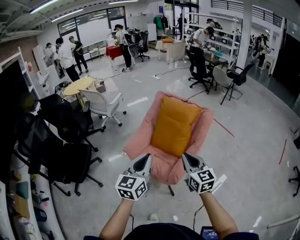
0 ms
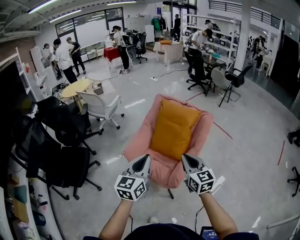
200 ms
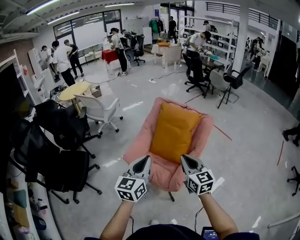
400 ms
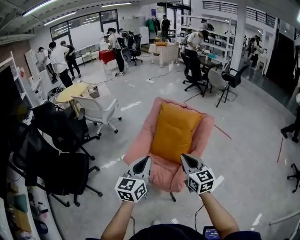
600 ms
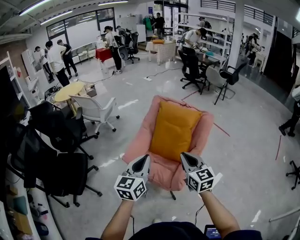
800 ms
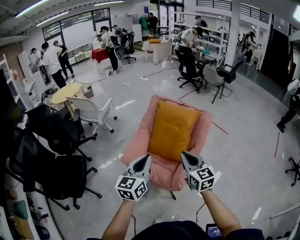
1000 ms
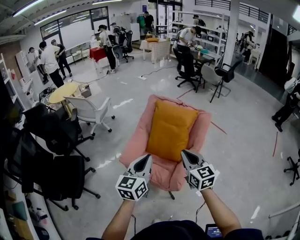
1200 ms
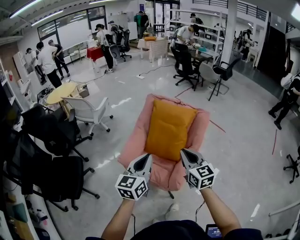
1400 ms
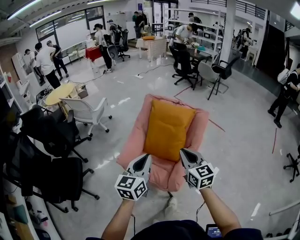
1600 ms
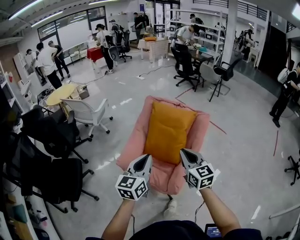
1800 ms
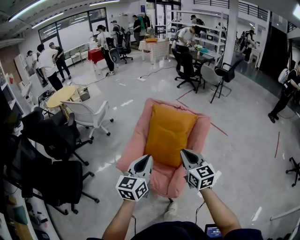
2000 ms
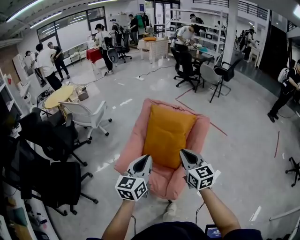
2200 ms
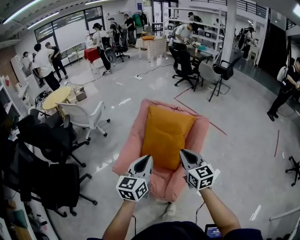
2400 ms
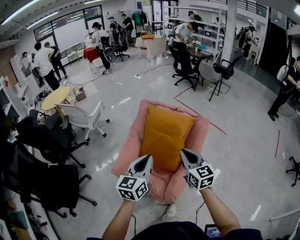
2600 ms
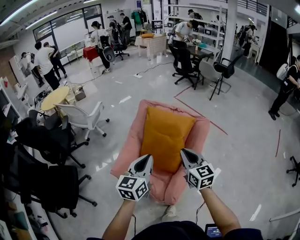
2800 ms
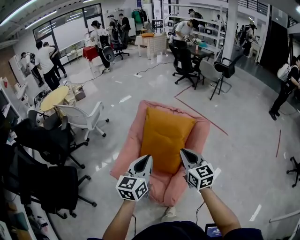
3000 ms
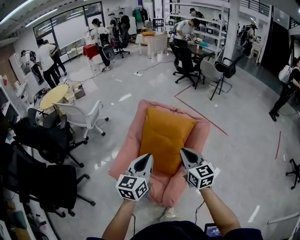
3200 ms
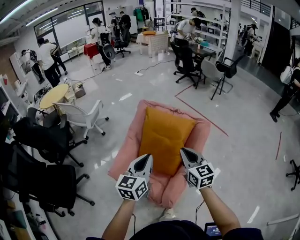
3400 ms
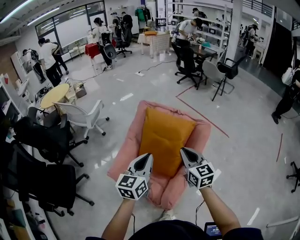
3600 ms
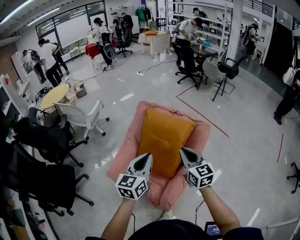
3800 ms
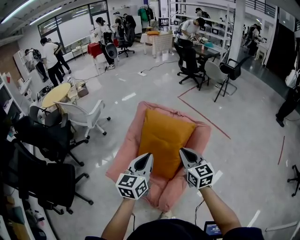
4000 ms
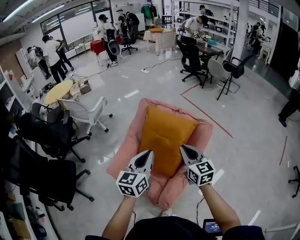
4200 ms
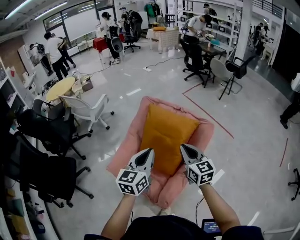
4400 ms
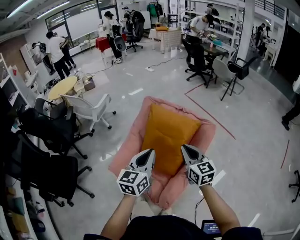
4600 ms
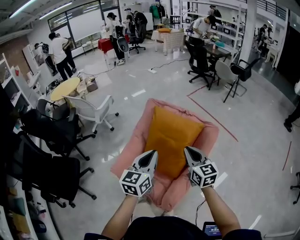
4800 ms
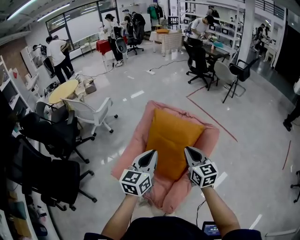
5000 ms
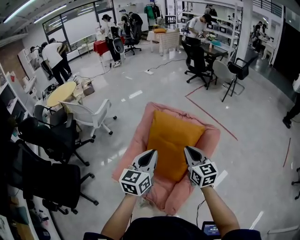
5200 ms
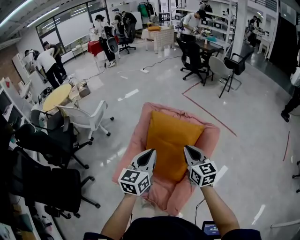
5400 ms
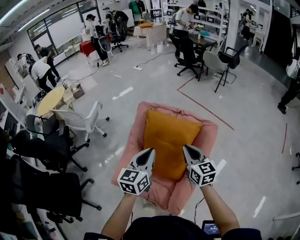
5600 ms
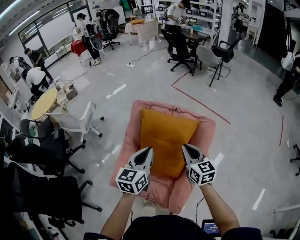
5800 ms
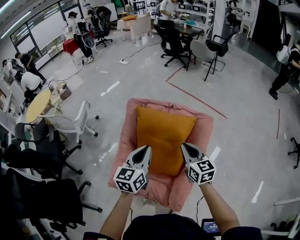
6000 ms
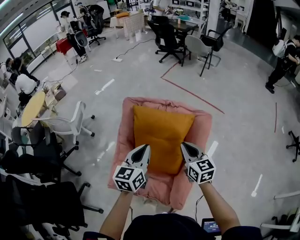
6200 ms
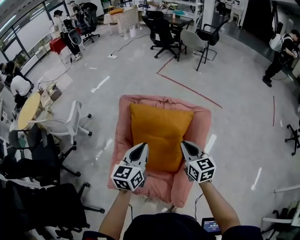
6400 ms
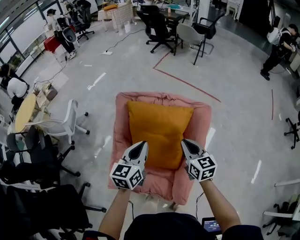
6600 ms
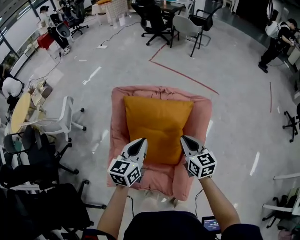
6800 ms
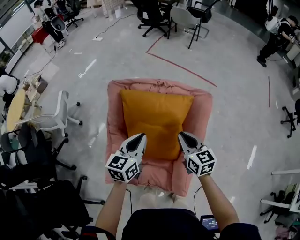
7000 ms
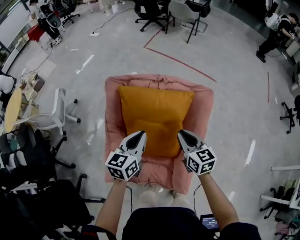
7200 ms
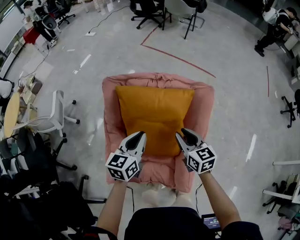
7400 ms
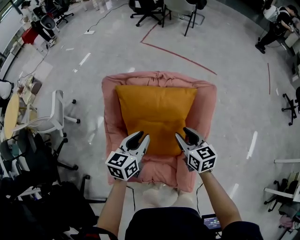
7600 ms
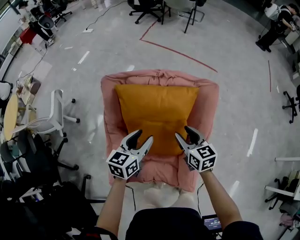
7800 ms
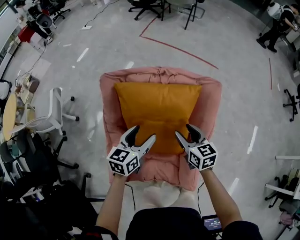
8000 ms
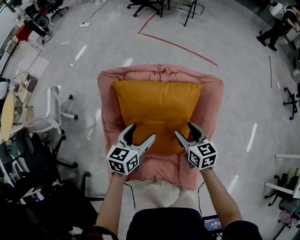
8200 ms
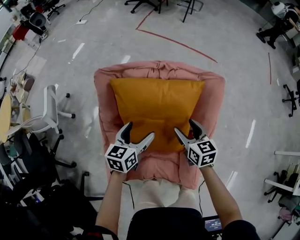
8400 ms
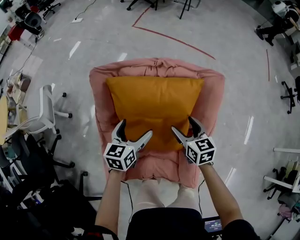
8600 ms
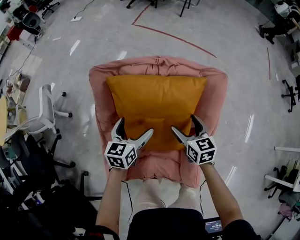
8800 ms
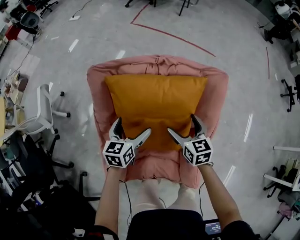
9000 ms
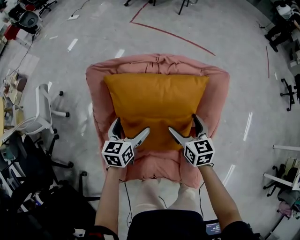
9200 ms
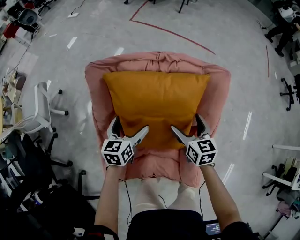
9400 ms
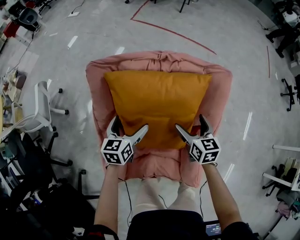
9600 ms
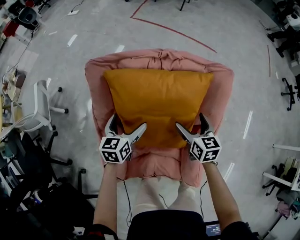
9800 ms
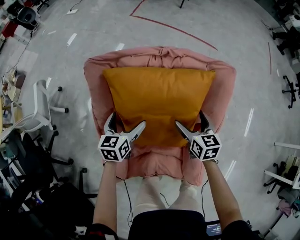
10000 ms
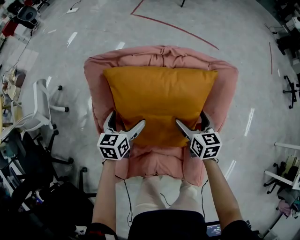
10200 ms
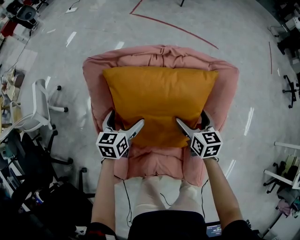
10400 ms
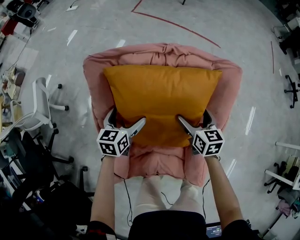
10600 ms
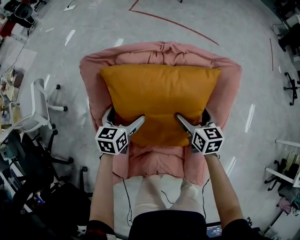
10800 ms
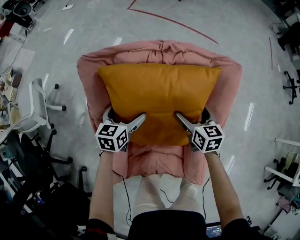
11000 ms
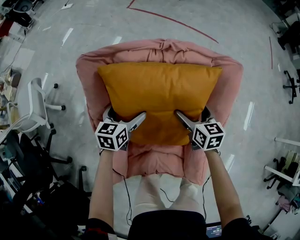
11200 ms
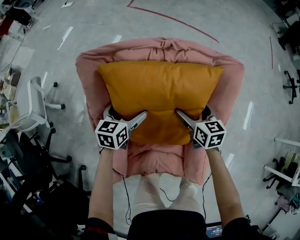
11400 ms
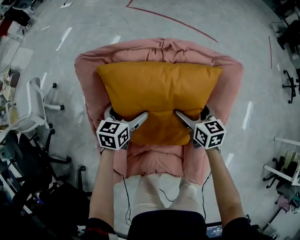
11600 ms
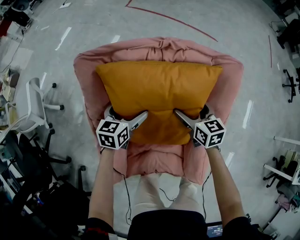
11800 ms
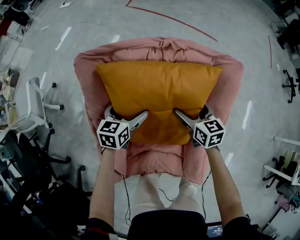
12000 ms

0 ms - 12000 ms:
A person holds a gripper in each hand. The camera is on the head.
0 ms - 1600 ms: Both grippers travel together forward, some 10 cm.
1600 ms - 3000 ms: The two grippers go roughly 15 cm forward and to the right.
3000 ms - 4400 ms: The right gripper goes some 5 cm forward. The left gripper moves roughly 5 cm.
4400 ms - 6000 ms: The two grippers go roughly 10 cm forward.
6000 ms - 7600 ms: The left gripper goes roughly 15 cm downward and forward, and rotates approximately 20 degrees. The right gripper travels downward by some 10 cm.
7600 ms - 9000 ms: Both grippers move downward and forward, roughly 10 cm. The right gripper opens its fingers, while the left gripper opens its fingers.
9000 ms - 10400 ms: The right gripper ends up about 5 cm from where it was. The left gripper shifts by approximately 5 cm.
10400 ms - 12000 ms: The left gripper shifts by roughly 5 cm.

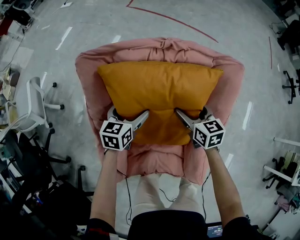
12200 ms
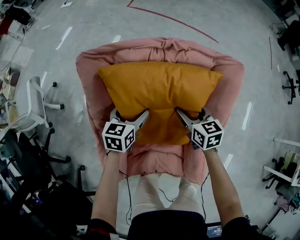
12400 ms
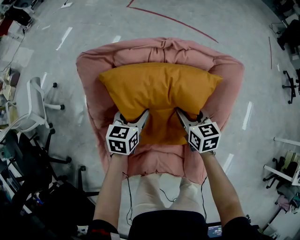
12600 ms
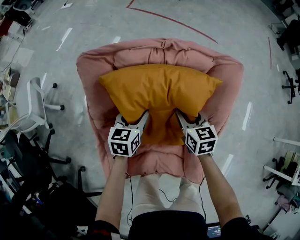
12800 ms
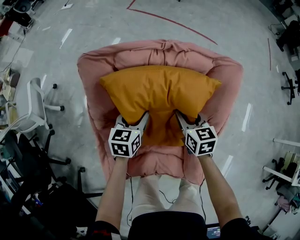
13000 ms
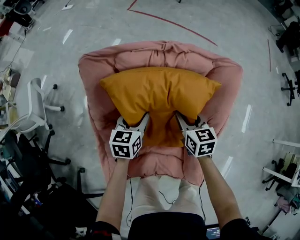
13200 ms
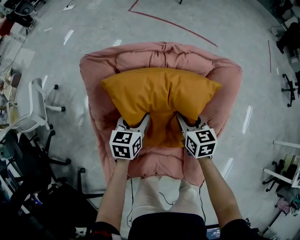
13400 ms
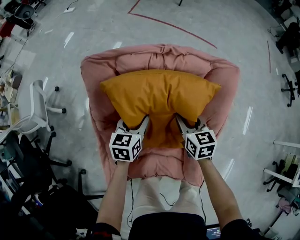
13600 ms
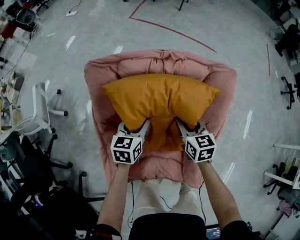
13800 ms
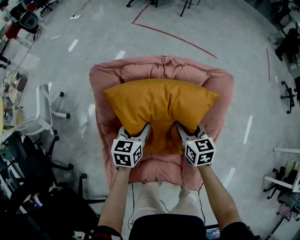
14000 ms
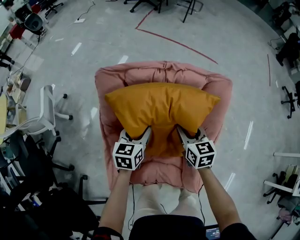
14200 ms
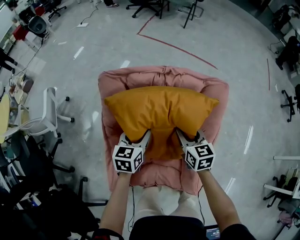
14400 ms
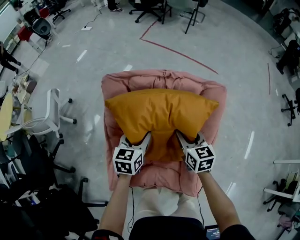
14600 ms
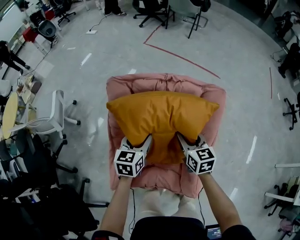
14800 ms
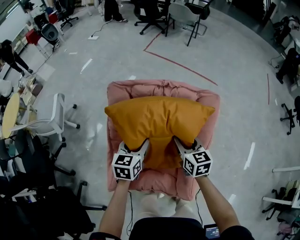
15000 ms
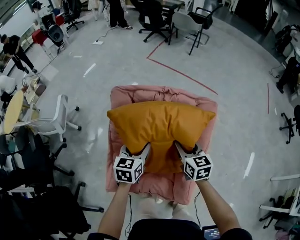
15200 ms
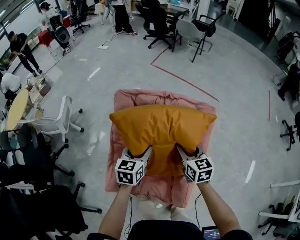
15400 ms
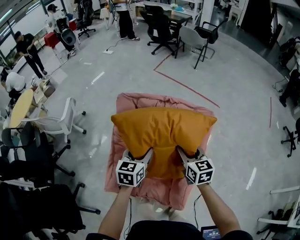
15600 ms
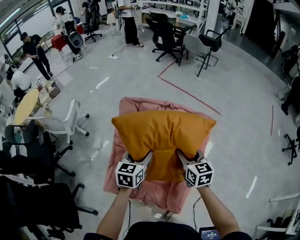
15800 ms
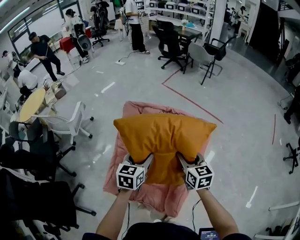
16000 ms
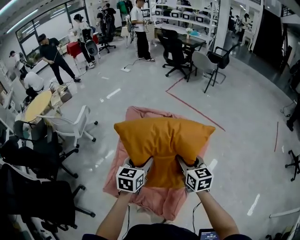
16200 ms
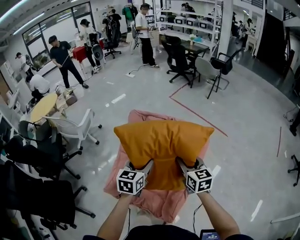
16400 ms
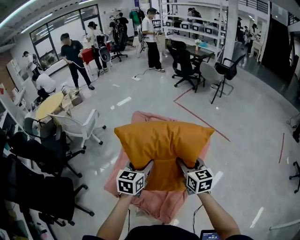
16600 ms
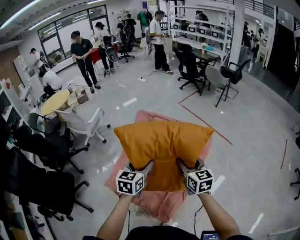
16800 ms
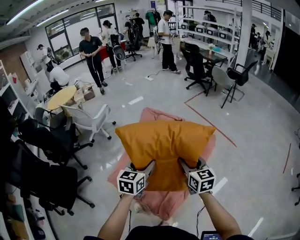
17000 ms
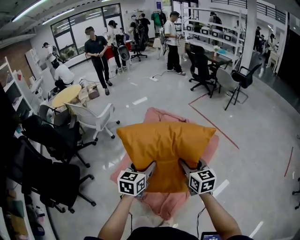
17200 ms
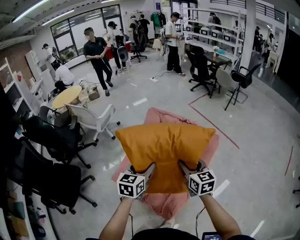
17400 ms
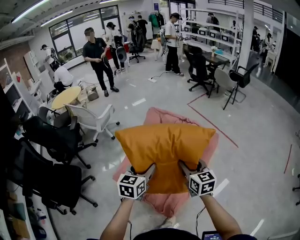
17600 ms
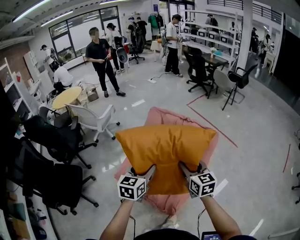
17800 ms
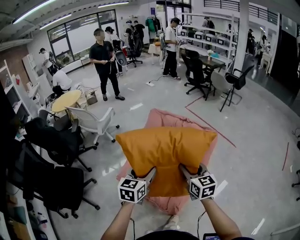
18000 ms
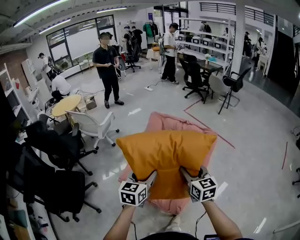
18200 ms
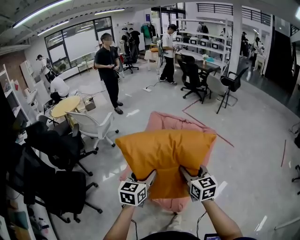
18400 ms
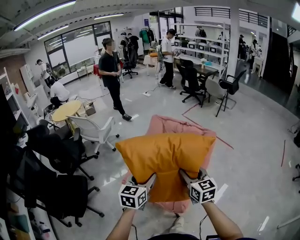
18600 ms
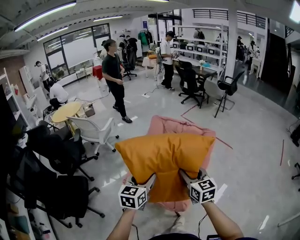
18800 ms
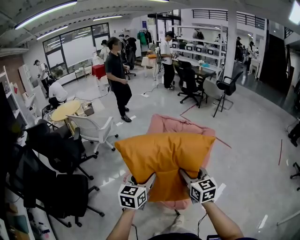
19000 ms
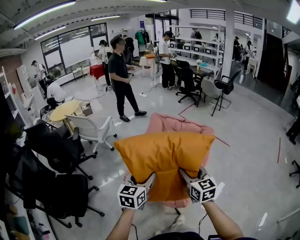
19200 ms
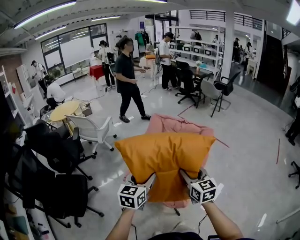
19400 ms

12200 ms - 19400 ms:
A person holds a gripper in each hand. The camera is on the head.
12200 ms - 13600 ms: The right gripper closes up, while the left gripper closes.
13600 ms - 15000 ms: Both grippers move upward and backward, about 15 cm.
15000 ms - 16600 ms: The two grippers go approximately 20 cm upward and backward. The right gripper rotates some 20 degrees.
16600 ms - 18000 ms: The two grippers go some 15 cm backward and to the left.
18000 ms - 19400 ms: The two grippers go some 15 cm backward and to the left.

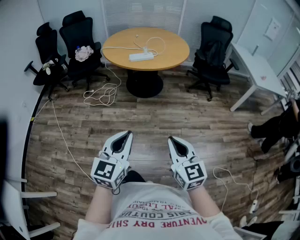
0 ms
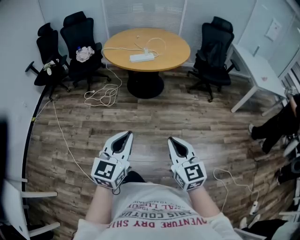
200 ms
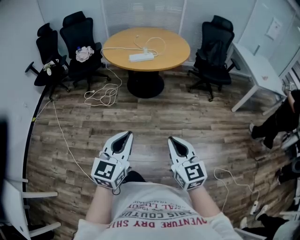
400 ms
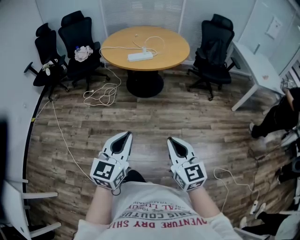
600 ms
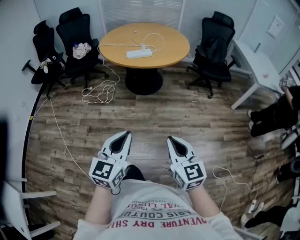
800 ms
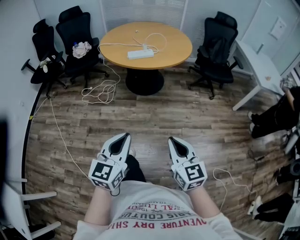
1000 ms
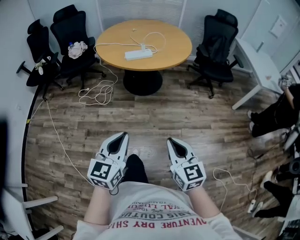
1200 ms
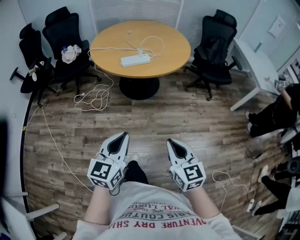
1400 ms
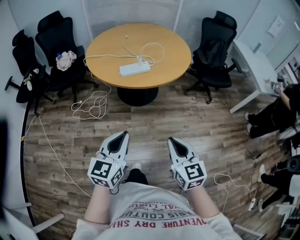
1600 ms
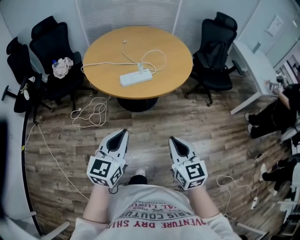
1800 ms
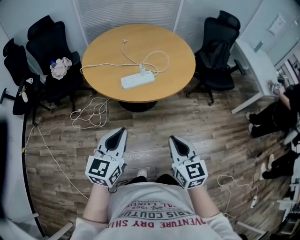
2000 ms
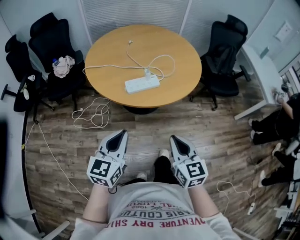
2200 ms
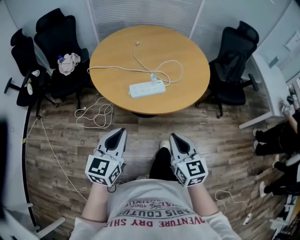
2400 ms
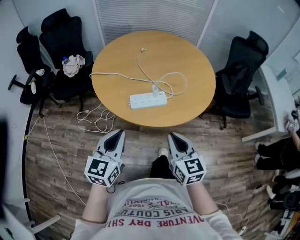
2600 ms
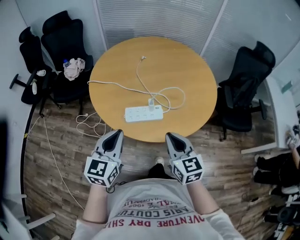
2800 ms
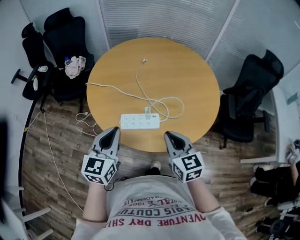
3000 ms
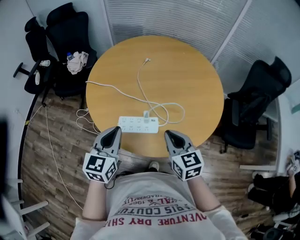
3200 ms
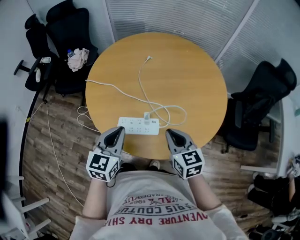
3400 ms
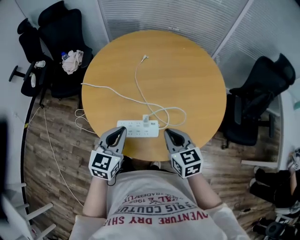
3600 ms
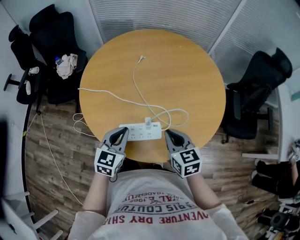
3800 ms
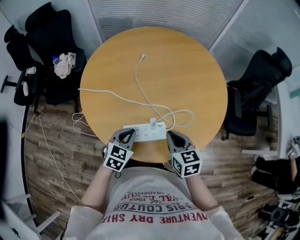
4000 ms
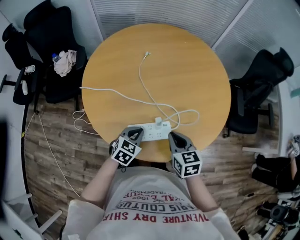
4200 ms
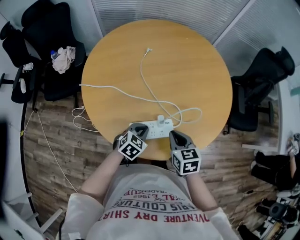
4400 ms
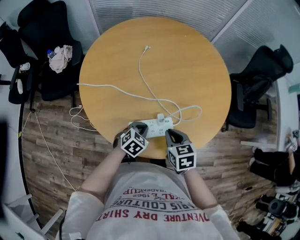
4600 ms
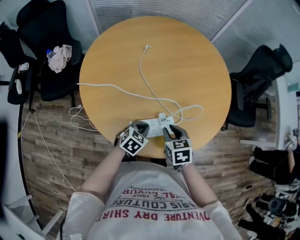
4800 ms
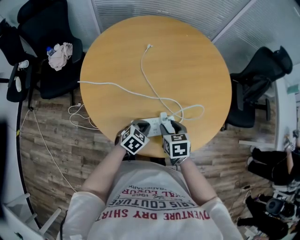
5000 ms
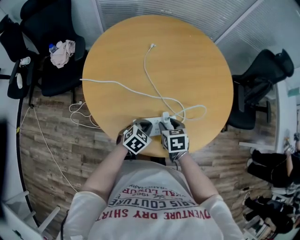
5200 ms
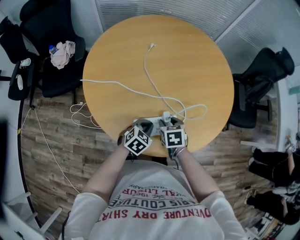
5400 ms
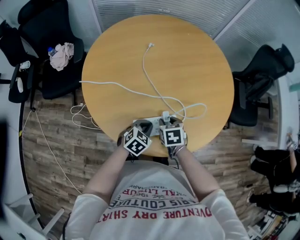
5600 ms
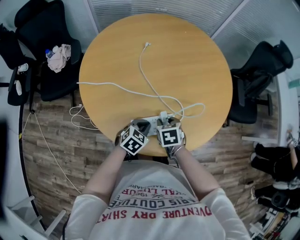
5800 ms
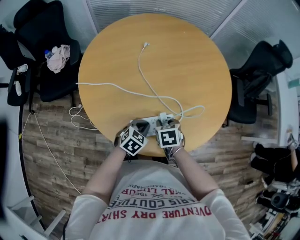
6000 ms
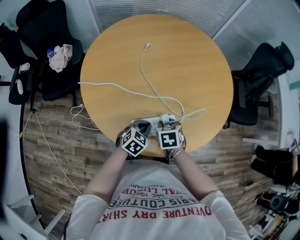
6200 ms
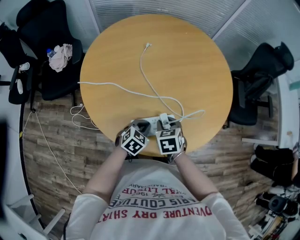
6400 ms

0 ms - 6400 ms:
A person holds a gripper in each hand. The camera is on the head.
0 ms - 1600 ms: The two grippers go about 30 cm forward.
1600 ms - 3200 ms: The two grippers travel together, some 50 cm. The right gripper swivels about 20 degrees. The left gripper turns by roughly 20 degrees.
3200 ms - 4800 ms: The left gripper heads downward, covering approximately 25 cm, and angles its fingers downward, by roughly 30 degrees; the right gripper goes some 15 cm downward, and turns by about 30 degrees.
